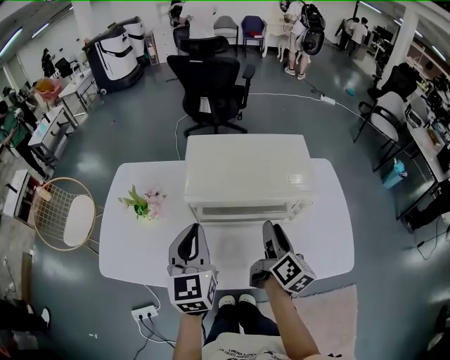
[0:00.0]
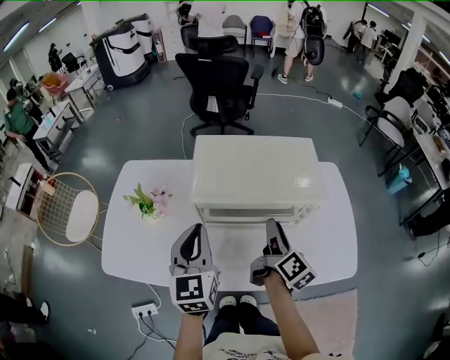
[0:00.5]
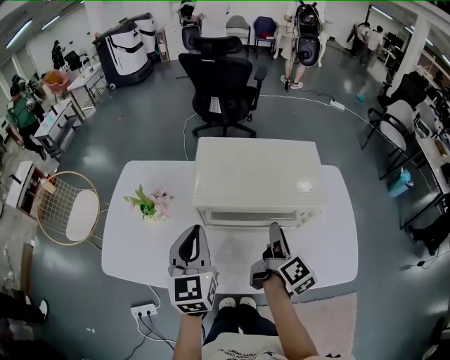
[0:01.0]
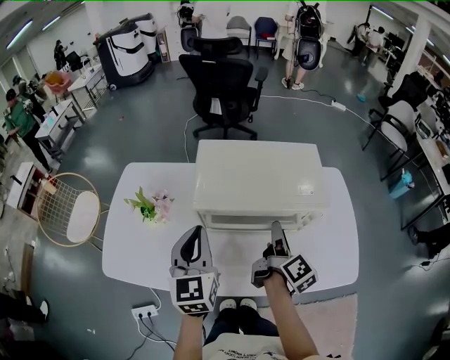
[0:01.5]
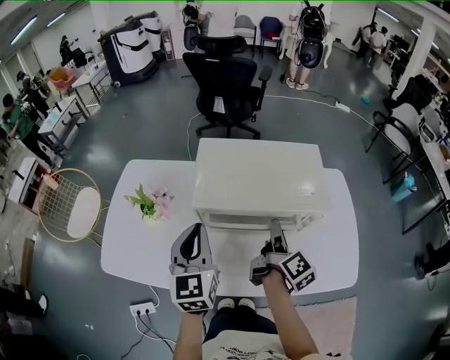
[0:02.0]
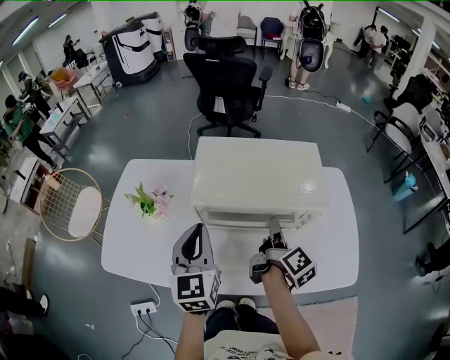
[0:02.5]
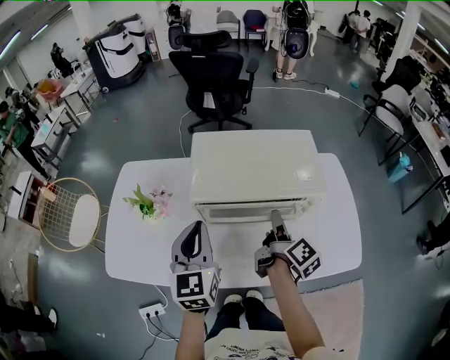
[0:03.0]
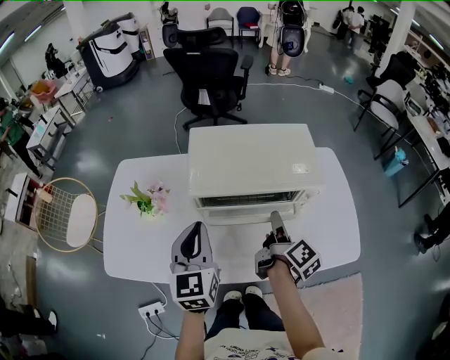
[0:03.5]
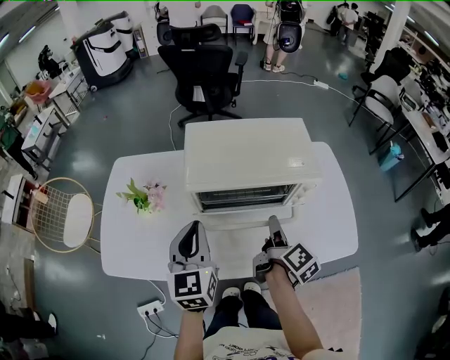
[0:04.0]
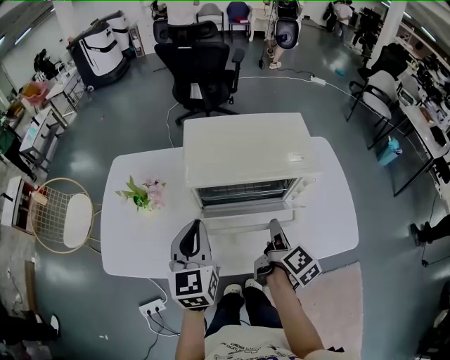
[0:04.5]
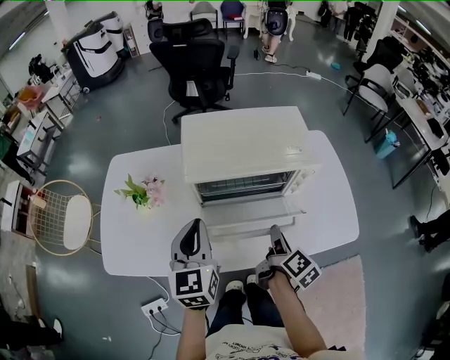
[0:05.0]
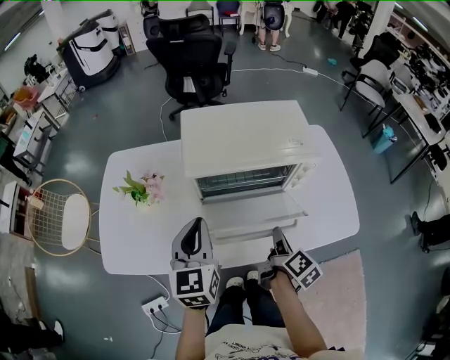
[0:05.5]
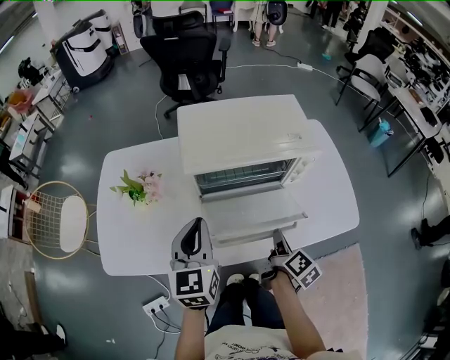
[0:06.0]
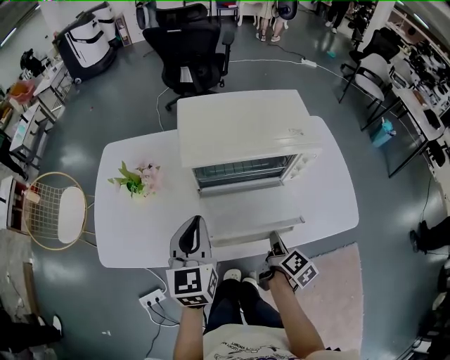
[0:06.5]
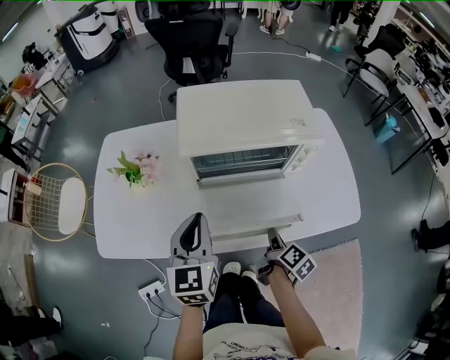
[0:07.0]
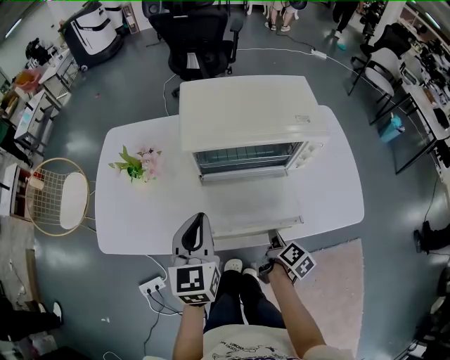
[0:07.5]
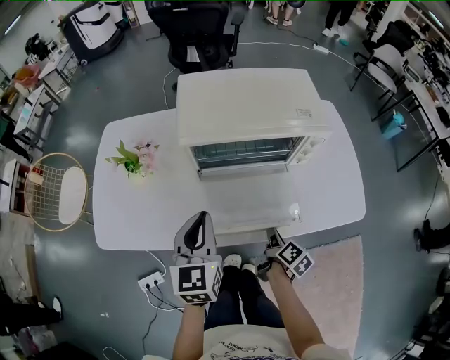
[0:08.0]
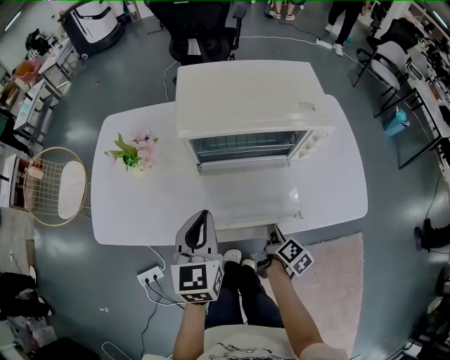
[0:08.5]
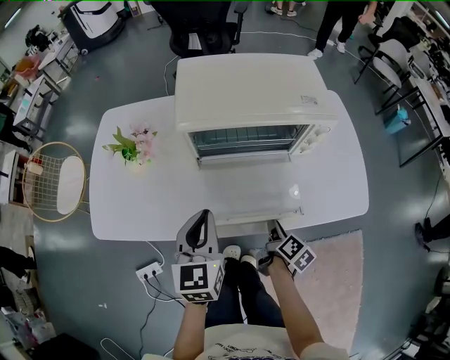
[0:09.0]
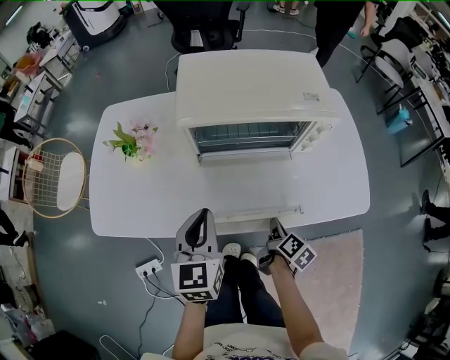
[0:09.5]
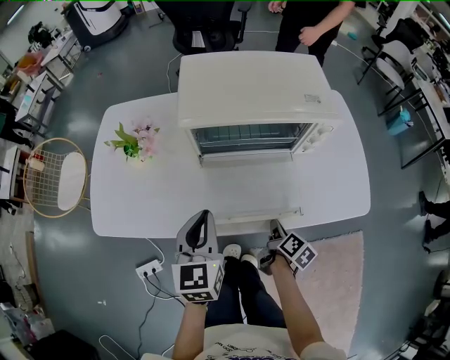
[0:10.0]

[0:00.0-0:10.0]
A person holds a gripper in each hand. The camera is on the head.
0:00.0 to 0:02.0: There are only small adjustments of the grippers.
0:02.0 to 0:04.0: The right gripper is displaced backward by about 5 cm.
0:04.0 to 0:06.0: The right gripper travels backward and downward by some 15 cm.
0:06.0 to 0:08.0: The left gripper shifts by about 5 cm. Meanwhile the right gripper travels downward by approximately 10 cm.
0:08.0 to 0:10.0: The right gripper closes.

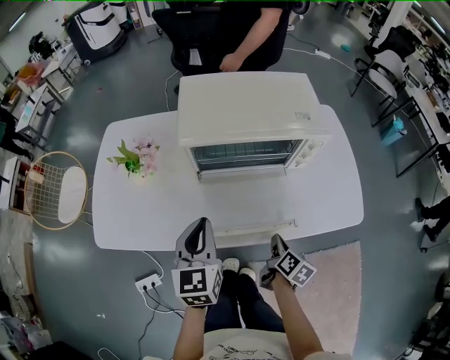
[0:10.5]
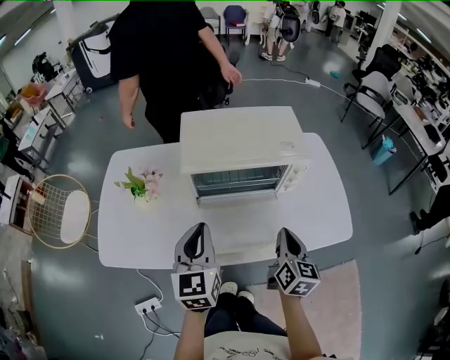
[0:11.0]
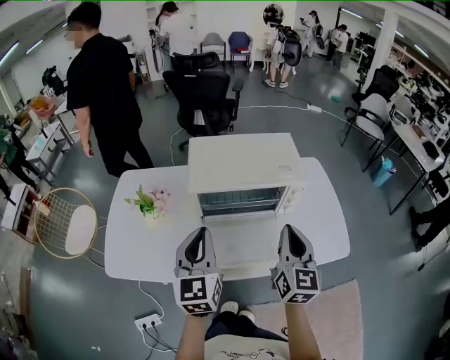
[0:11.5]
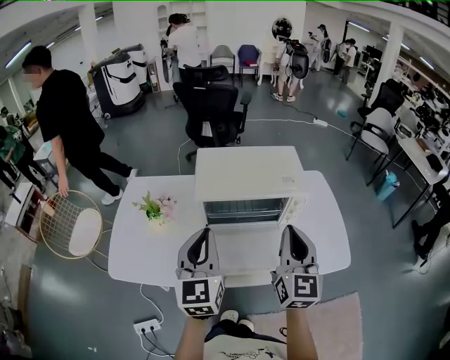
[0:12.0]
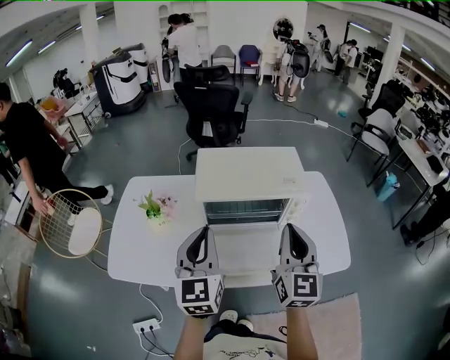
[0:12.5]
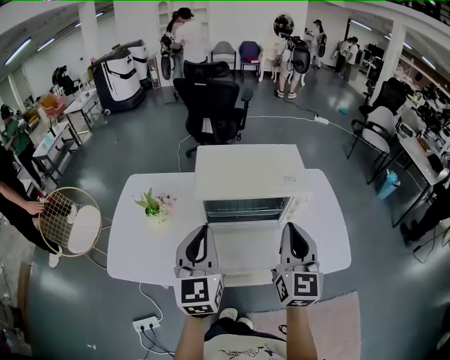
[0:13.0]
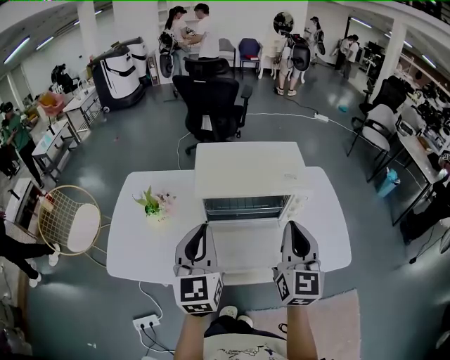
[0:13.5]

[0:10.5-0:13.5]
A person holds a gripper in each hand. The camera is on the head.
0:10.5 to 0:12.0: The left gripper travels upward by about 15 cm. The right gripper is displaced upward by roughly 35 cm, and points its fingers about 40 degrees further upward.
0:12.0 to 0:13.5: There are only small adjustments of the grippers.

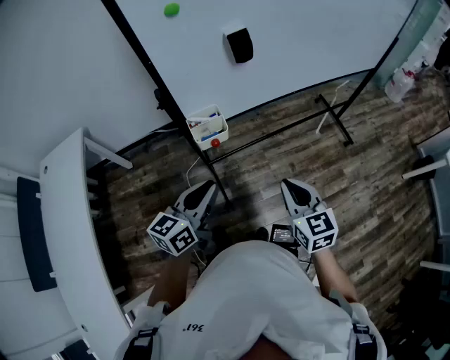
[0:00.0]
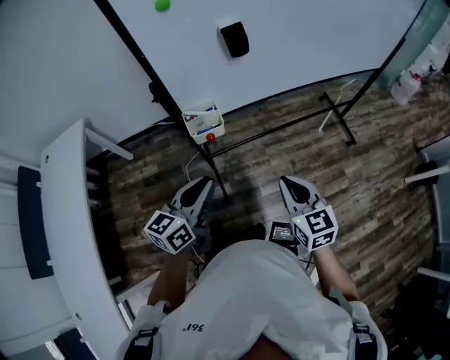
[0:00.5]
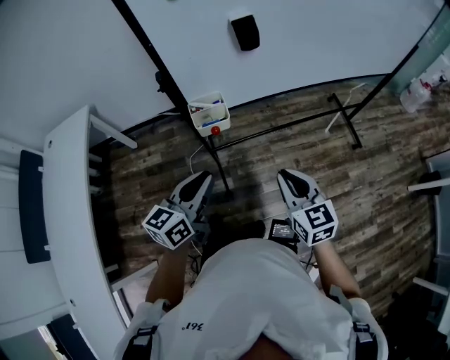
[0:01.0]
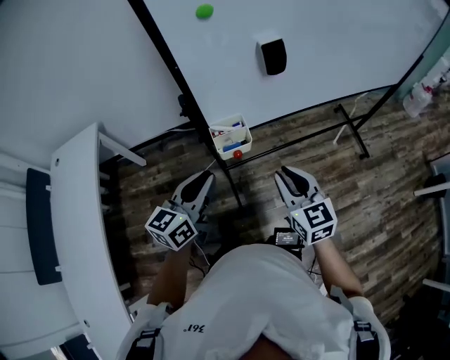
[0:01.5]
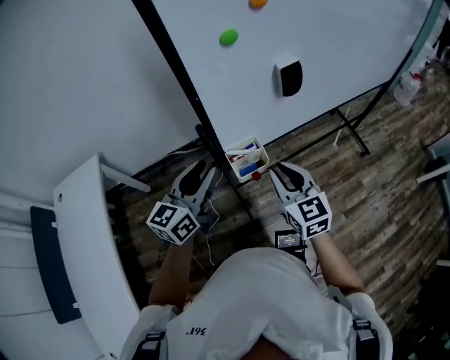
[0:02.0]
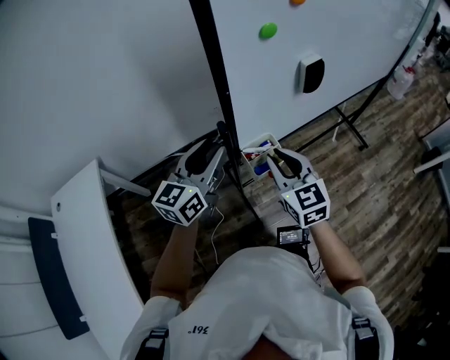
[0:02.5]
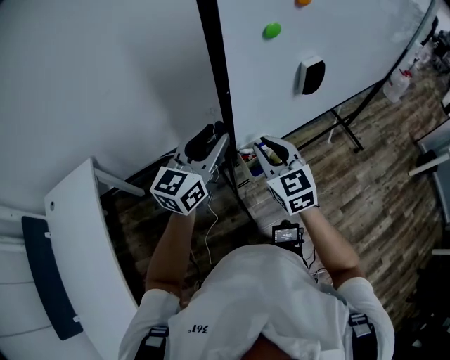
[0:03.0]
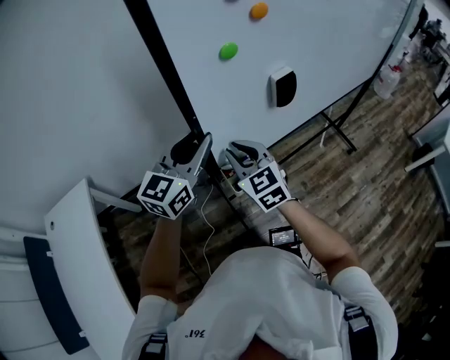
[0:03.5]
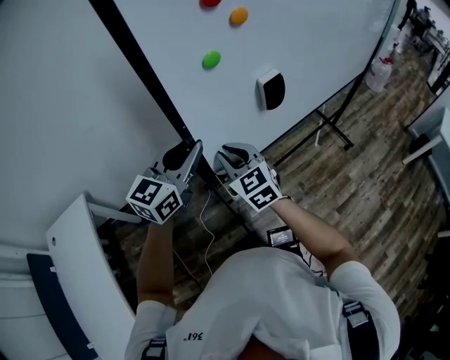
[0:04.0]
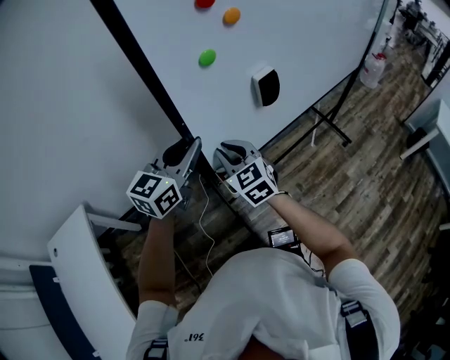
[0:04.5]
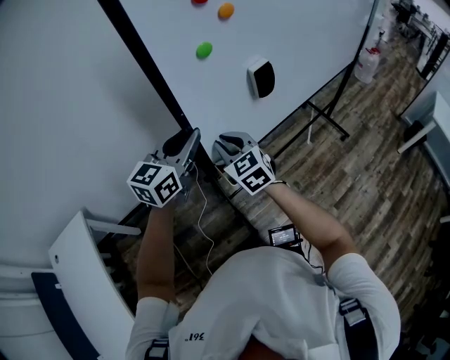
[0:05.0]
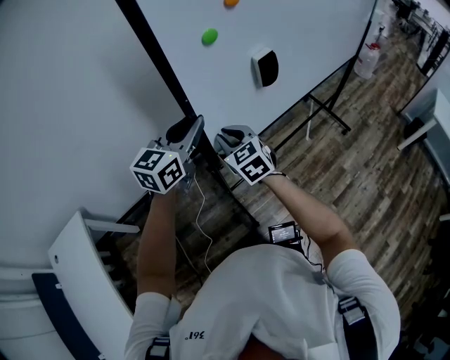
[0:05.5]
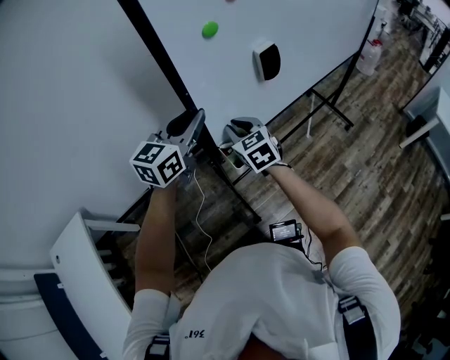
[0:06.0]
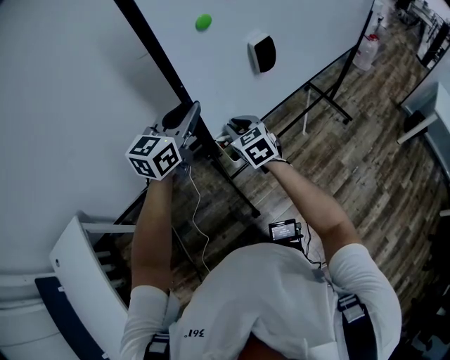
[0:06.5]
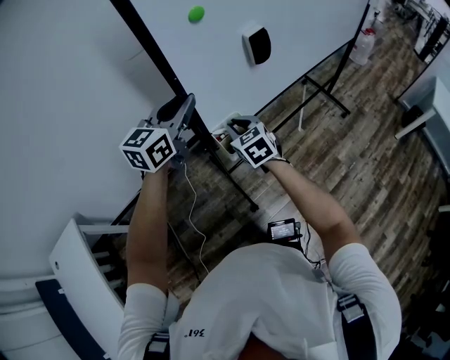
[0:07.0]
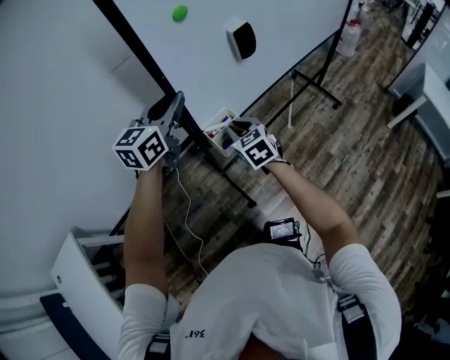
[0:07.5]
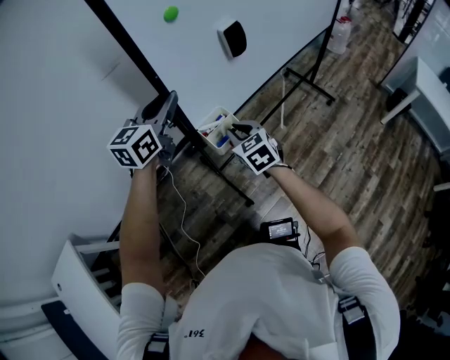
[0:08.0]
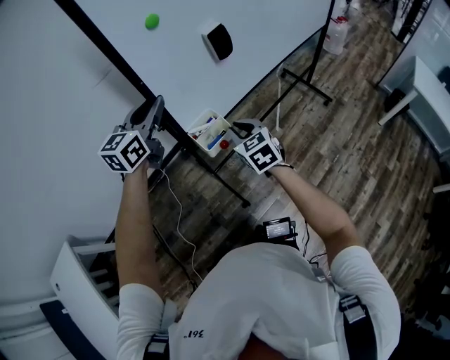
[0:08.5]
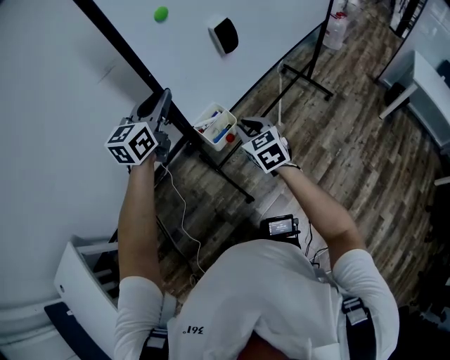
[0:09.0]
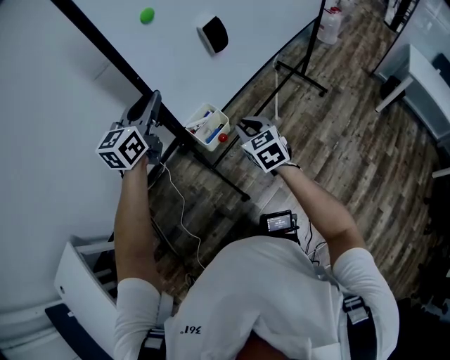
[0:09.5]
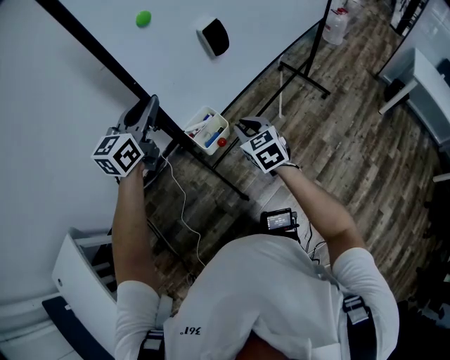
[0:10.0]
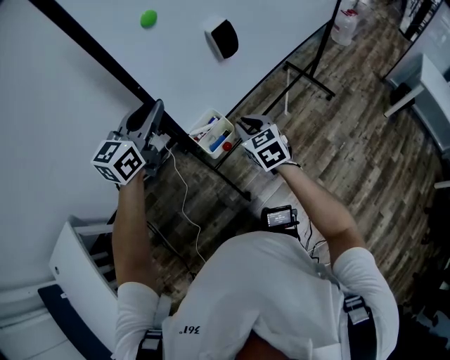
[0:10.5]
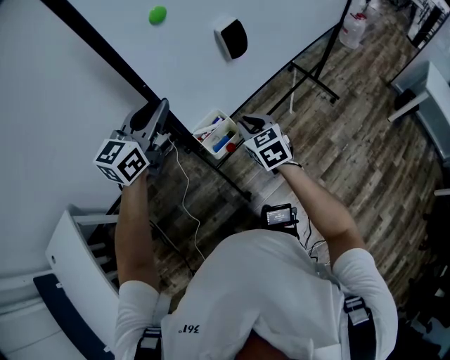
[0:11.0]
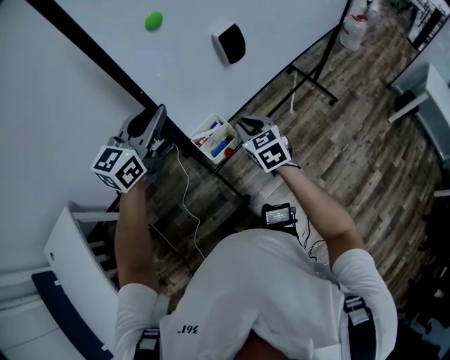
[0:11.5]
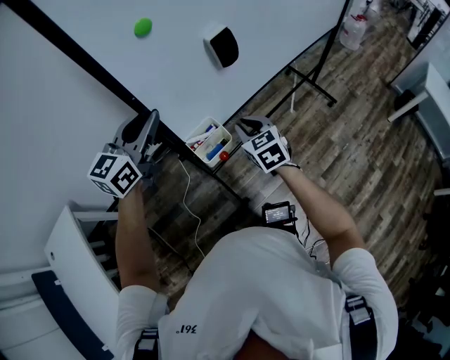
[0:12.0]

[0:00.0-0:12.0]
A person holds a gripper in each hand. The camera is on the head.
0:00.0 to 0:02.0: The right gripper travels to the left and forward by some 20 cm; the left gripper travels forward and to the left by roughly 20 cm, and opens.
0:02.0 to 0:04.0: The right gripper travels forward and to the left by some 15 cm, while the left gripper goes some 15 cm forward and upward, and changes its angle by approximately 20 degrees.
0:04.0 to 0:06.0: Both grippers travel together forward and to the right, approximately 15 cm.
0:06.0 to 0:08.0: The right gripper is displaced to the right by approximately 15 cm, while the left gripper shifts approximately 15 cm forward and to the right.
0:08.0 to 0:10.0: The left gripper ends up about 5 cm from where it was.
0:10.0 to 0:12.0: The left gripper heads backward and to the left, covering approximately 15 cm, while the right gripper travels to the left and backward by roughly 10 cm.

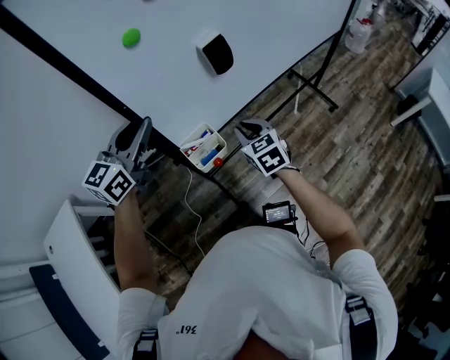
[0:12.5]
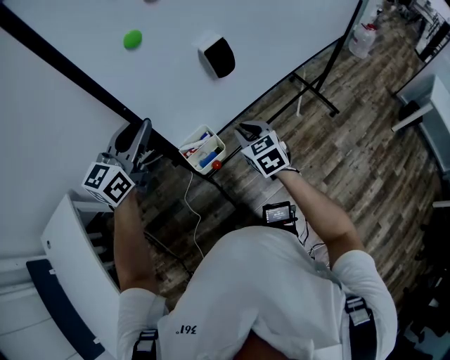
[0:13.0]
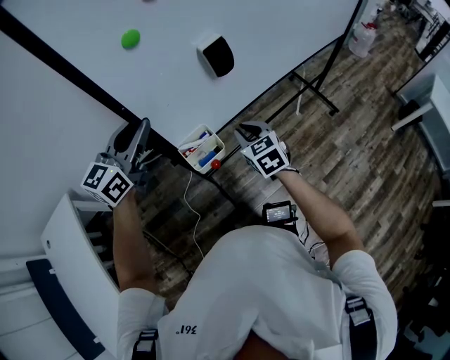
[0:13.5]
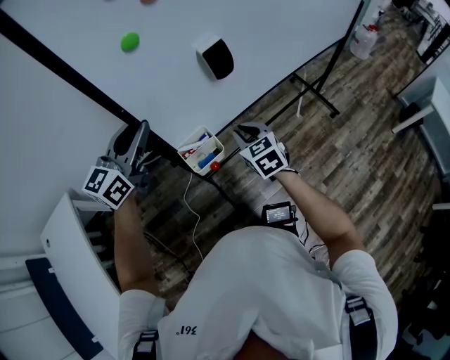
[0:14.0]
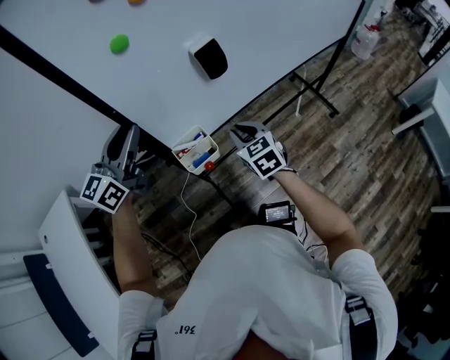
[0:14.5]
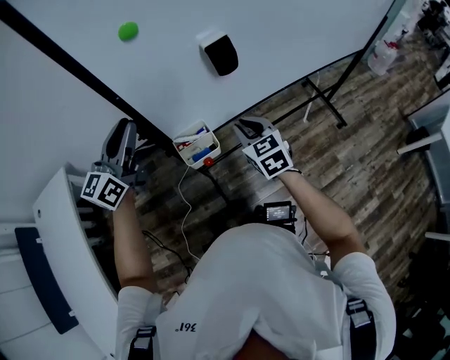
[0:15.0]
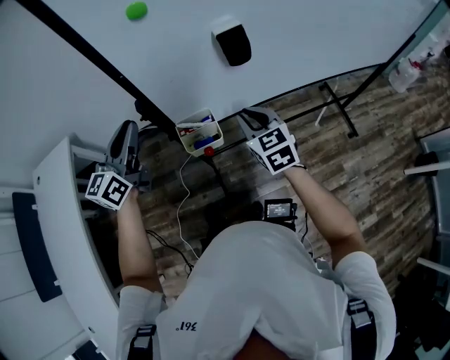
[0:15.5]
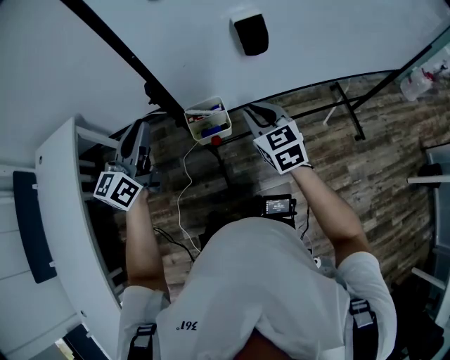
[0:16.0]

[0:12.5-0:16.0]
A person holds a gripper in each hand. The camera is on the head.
0:12.5 to 0:14.5: The left gripper travels to the left by roughly 5 cm.
0:14.5 to 0:16.0: The left gripper is displaced backward and downward by roughly 10 cm, and rotates about 30 degrees.
